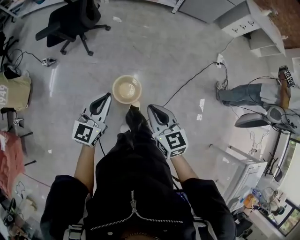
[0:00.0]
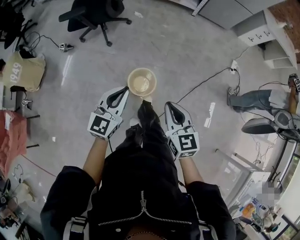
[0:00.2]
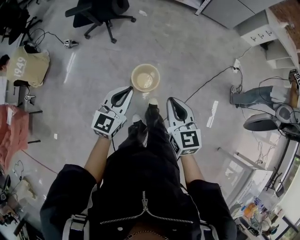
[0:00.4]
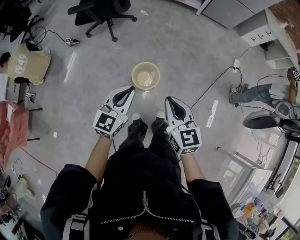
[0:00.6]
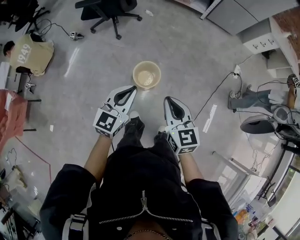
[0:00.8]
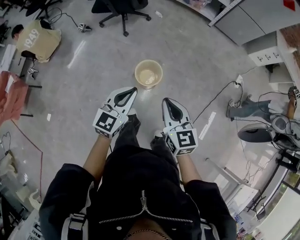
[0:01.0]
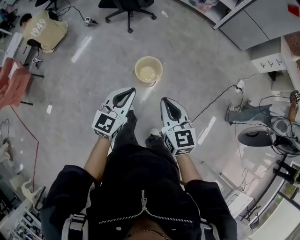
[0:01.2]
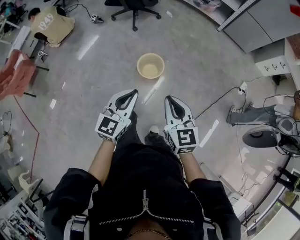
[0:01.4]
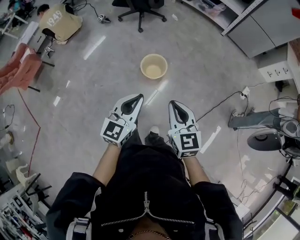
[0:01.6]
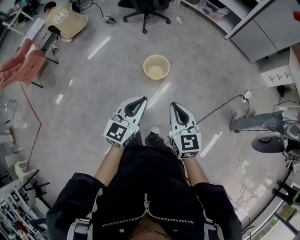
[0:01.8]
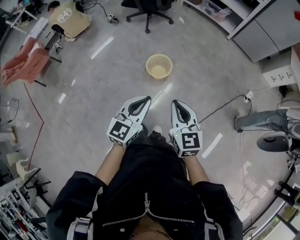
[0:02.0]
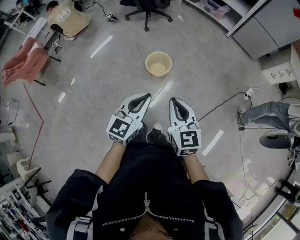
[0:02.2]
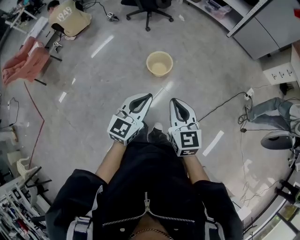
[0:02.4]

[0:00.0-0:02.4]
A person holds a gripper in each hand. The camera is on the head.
0:00.0 to 0:01.2: The two grippers go approximately 20 cm backward.
0:01.2 to 0:02.4: The two grippers go about 15 cm backward and to the right.

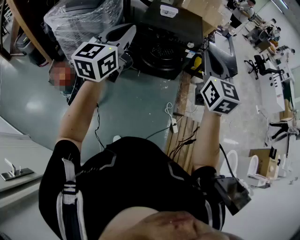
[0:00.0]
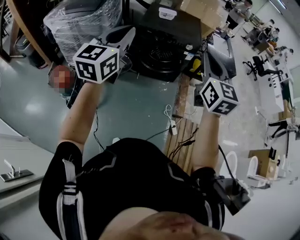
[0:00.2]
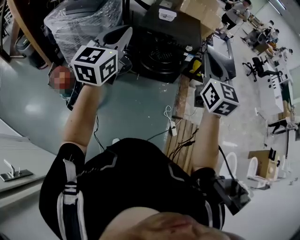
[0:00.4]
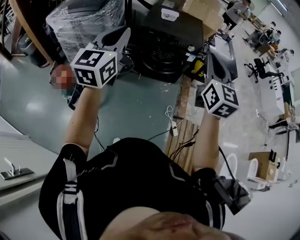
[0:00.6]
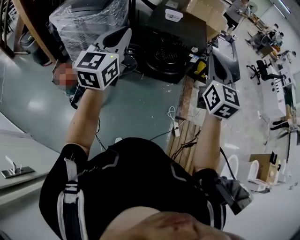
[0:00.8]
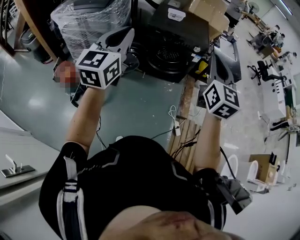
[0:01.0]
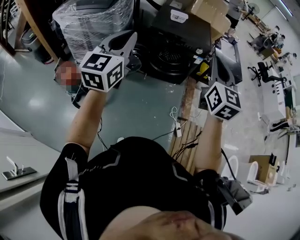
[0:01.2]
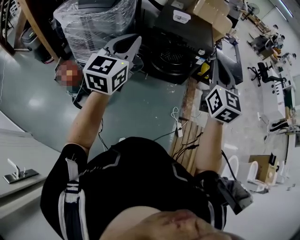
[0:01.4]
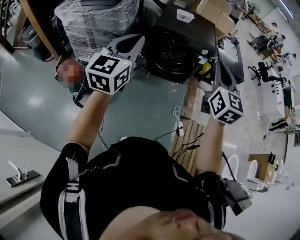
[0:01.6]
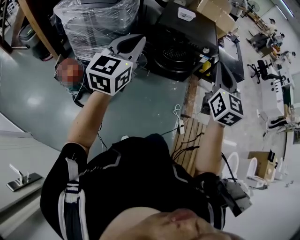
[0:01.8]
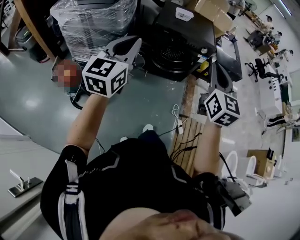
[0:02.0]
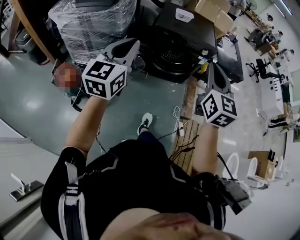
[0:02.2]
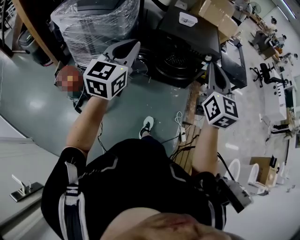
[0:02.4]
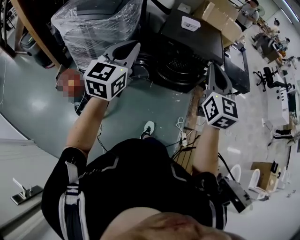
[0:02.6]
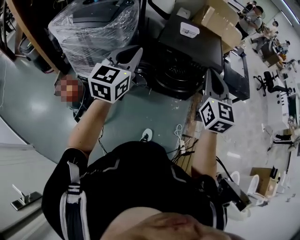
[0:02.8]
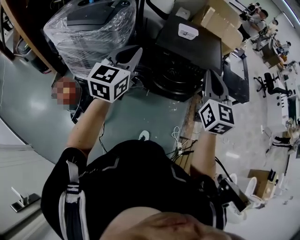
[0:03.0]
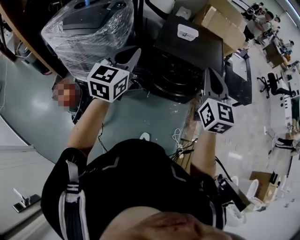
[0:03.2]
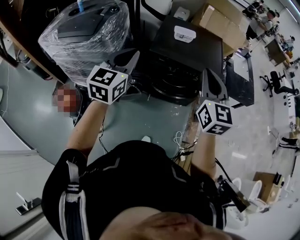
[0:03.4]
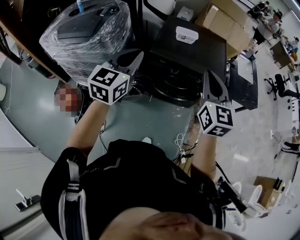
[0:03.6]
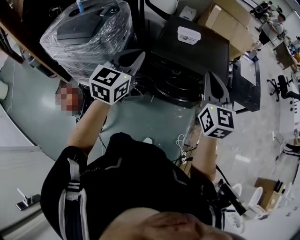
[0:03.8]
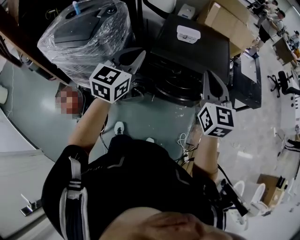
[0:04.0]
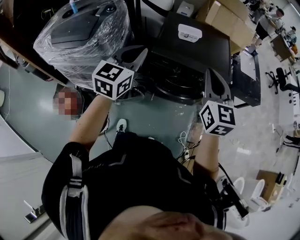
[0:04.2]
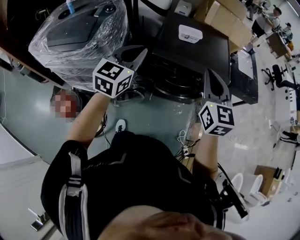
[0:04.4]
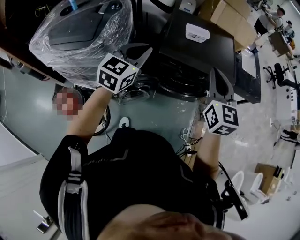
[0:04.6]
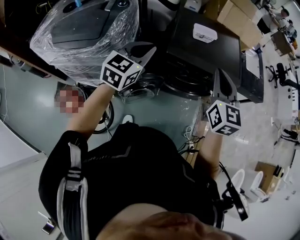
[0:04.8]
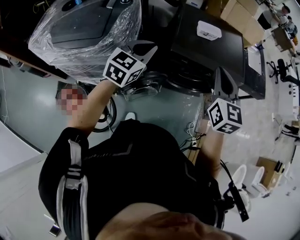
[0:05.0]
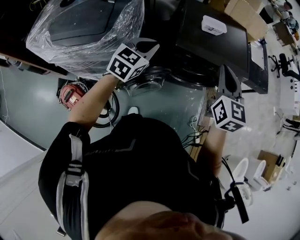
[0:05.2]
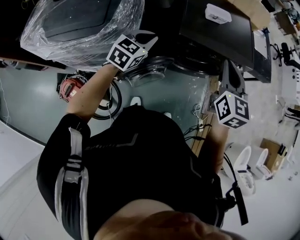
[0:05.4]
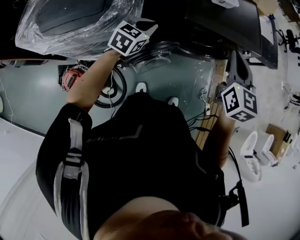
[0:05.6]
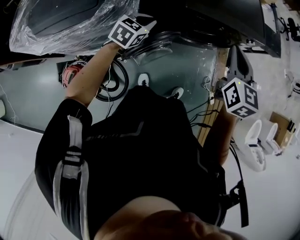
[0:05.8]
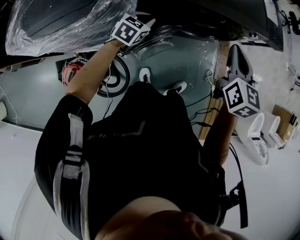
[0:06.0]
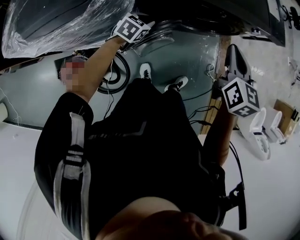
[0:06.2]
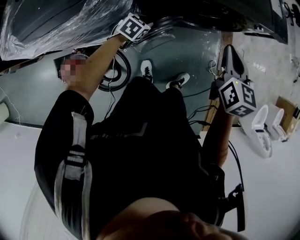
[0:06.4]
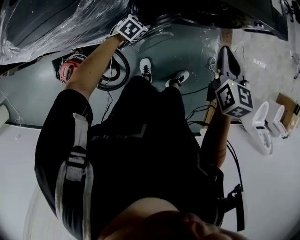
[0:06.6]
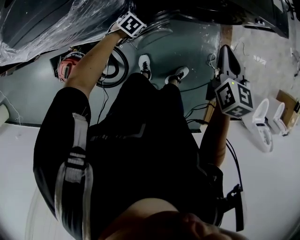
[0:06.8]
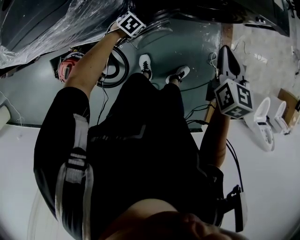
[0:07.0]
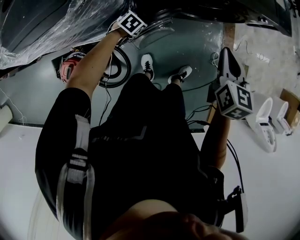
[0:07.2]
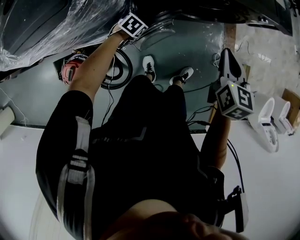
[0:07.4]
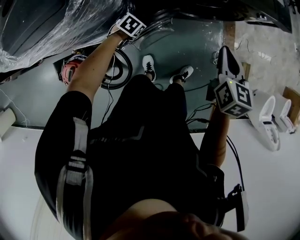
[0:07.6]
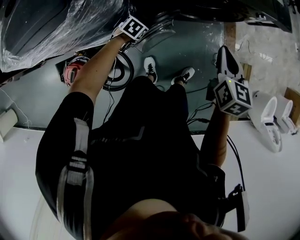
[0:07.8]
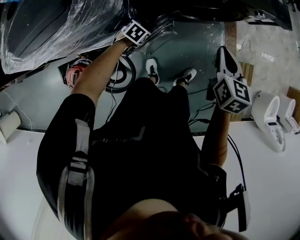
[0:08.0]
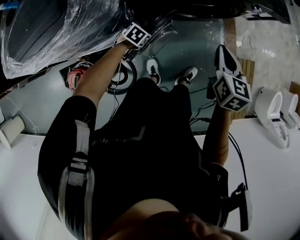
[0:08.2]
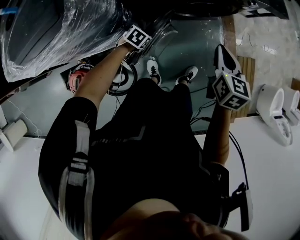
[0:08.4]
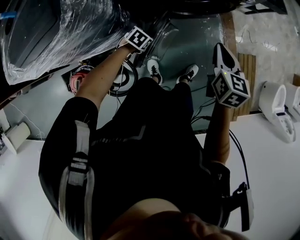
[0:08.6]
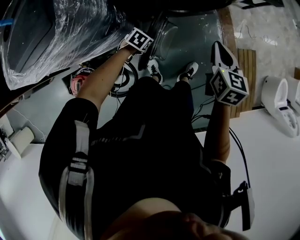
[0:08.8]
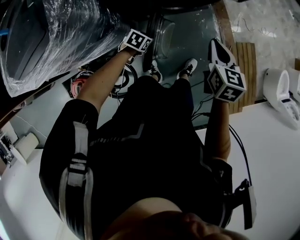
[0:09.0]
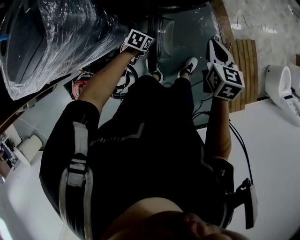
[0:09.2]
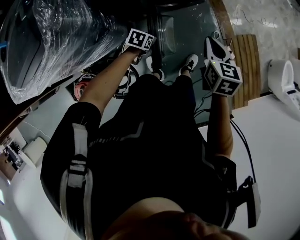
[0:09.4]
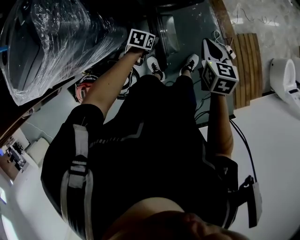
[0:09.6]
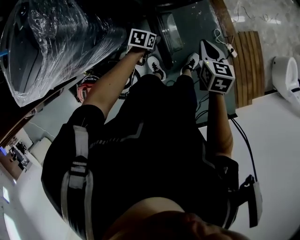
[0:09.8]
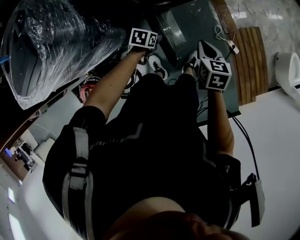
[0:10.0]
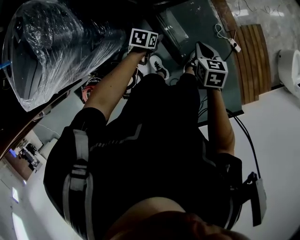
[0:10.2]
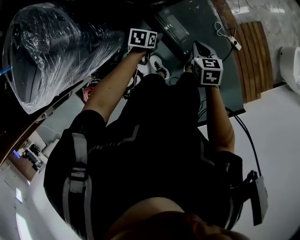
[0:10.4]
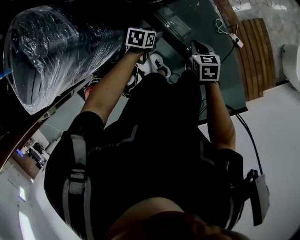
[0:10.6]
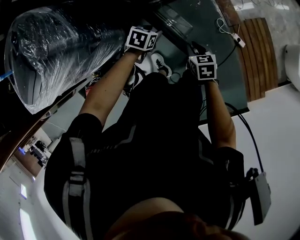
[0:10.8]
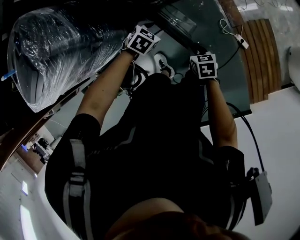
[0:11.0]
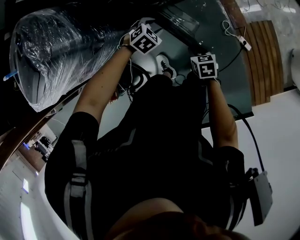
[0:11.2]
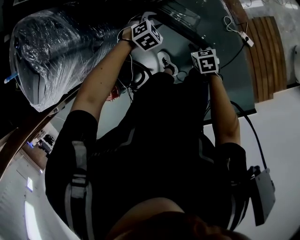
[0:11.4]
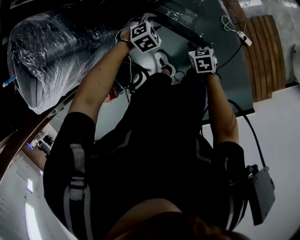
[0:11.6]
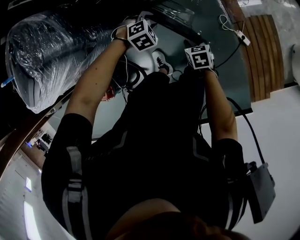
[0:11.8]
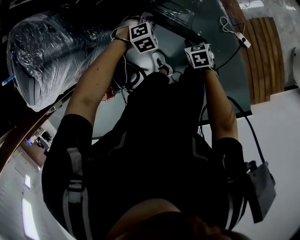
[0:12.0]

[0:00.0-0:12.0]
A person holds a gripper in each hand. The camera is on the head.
0:00.0 to 0:01.6: The two grippers go approximately 10 cm to the left.
0:01.6 to 0:03.0: The two grippers go some 20 cm forward.
0:03.0 to 0:04.4: The grippers both shift forward by about 20 cm.
0:04.4 to 0:06.0: The left gripper travels downward and to the left by approximately 35 cm, and points its fingers some 30 degrees further downward, while the right gripper shifts about 20 cm downward and to the left, and turns by about 30 degrees.
0:06.0 to 0:07.6: The left gripper goes about 20 cm downward, changes its angle by about 30 degrees, and opens; the right gripper moves downward, approximately 10 cm.
0:07.6 to 0:09.0: Both grippers travel together to the right, approximately 10 cm.
0:09.0 to 0:10.4: The right gripper goes approximately 20 cm downward and to the right. Meanwhile the left gripper shifts roughly 15 cm to the right and forward.
0:10.4 to 0:12.0: The right gripper shifts some 15 cm downward, and opens its fingers. The left gripper moves about 10 cm, and rotates around the line of its fingers by some 70 degrees, clockwise from behind.

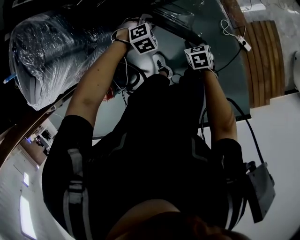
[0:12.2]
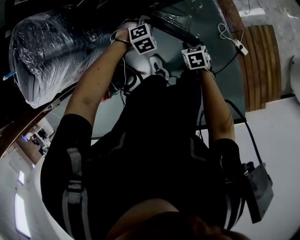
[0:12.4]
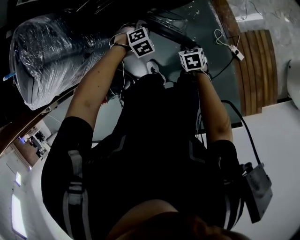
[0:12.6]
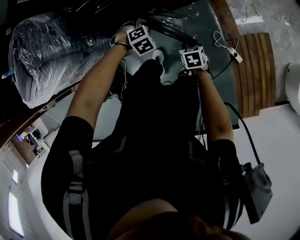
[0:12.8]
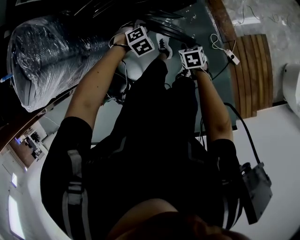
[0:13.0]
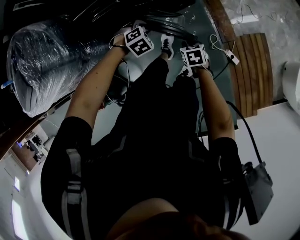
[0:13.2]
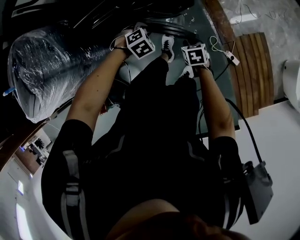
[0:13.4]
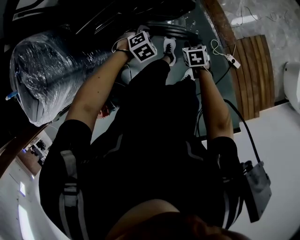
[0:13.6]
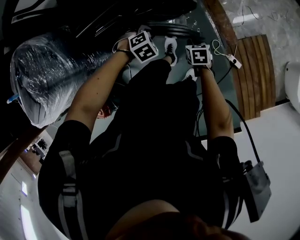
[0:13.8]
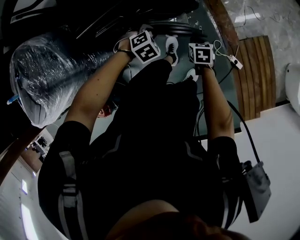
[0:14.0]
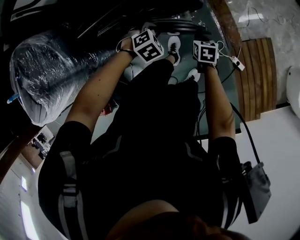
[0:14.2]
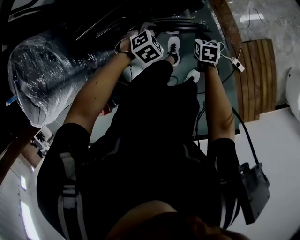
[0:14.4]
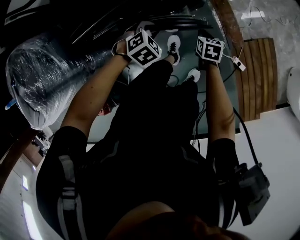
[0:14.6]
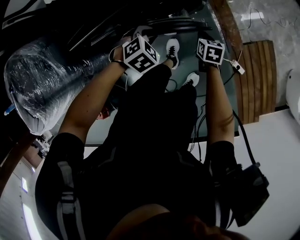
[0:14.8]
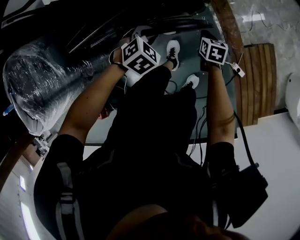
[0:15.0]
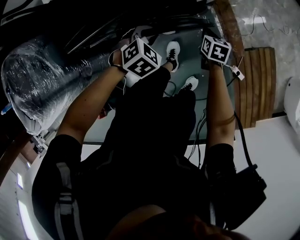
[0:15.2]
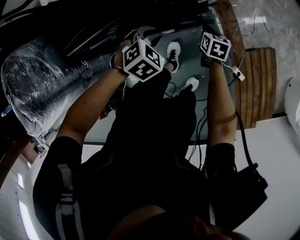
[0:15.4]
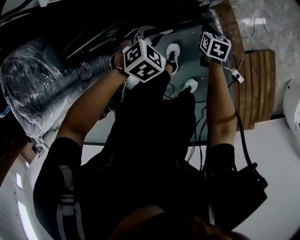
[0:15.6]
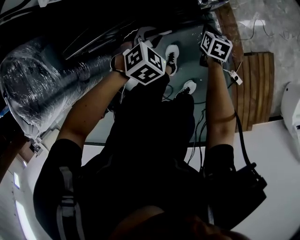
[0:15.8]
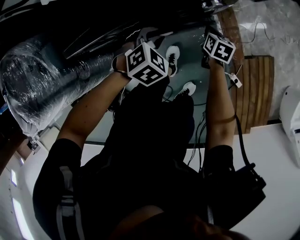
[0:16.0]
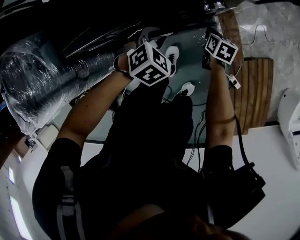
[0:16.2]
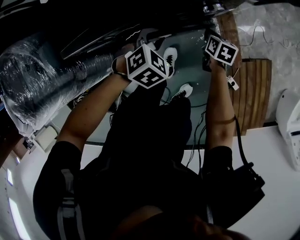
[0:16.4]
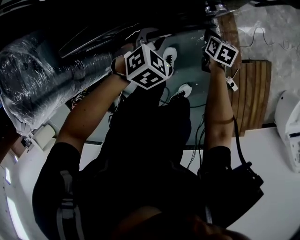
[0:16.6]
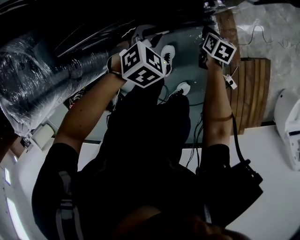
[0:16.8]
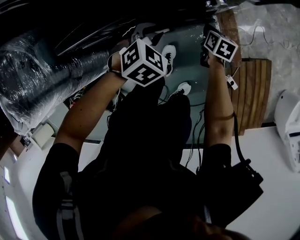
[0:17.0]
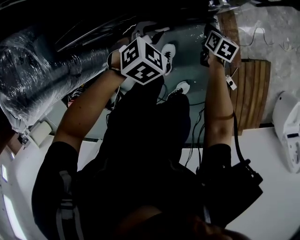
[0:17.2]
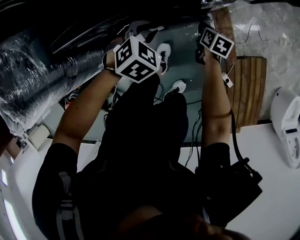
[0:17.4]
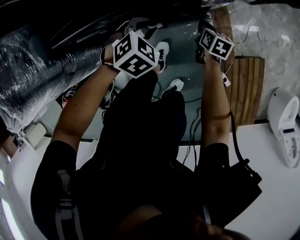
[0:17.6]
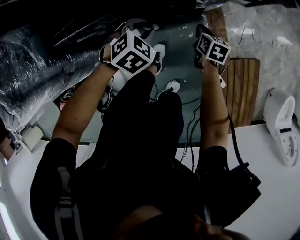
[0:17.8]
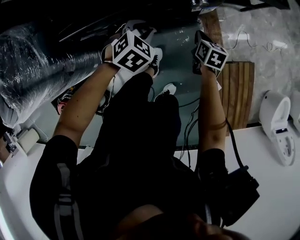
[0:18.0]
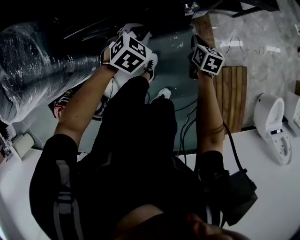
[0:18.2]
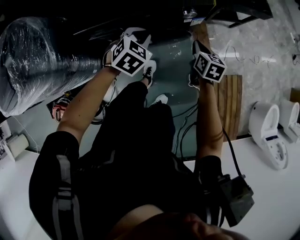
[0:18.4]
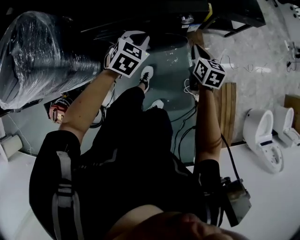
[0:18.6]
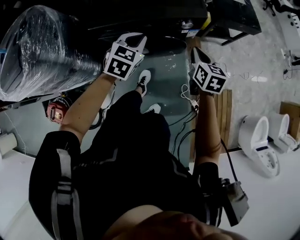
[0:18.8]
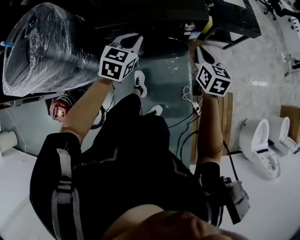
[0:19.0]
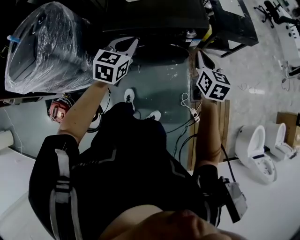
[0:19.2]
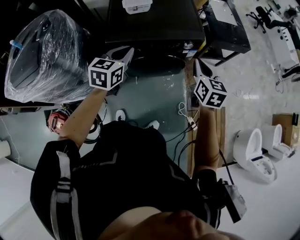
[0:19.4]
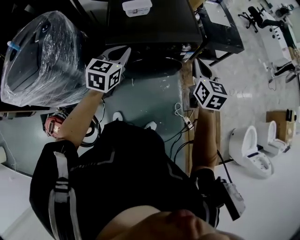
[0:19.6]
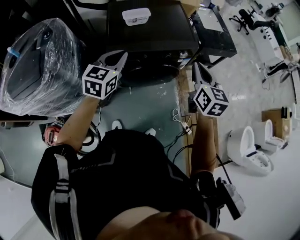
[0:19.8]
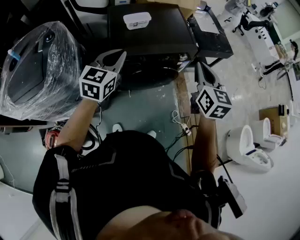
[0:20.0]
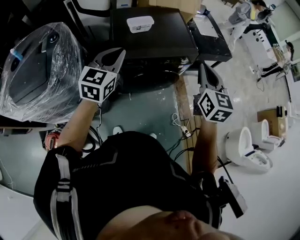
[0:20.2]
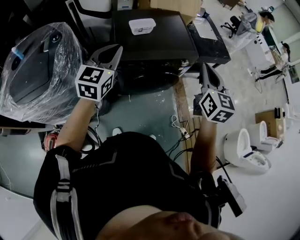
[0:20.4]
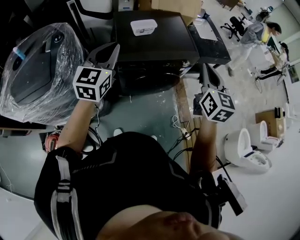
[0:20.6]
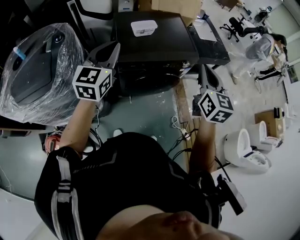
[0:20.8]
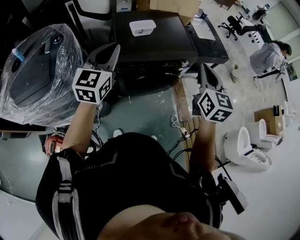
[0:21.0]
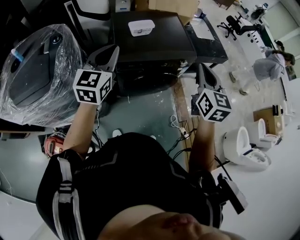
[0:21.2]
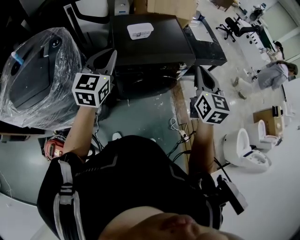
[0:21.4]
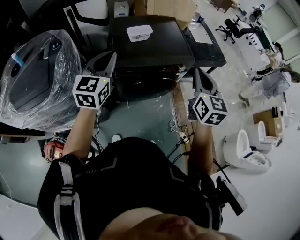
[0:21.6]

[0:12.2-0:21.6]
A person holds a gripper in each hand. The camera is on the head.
0:12.2 to 0:13.8: The left gripper shifts by approximately 10 cm. The right gripper ends up approximately 20 cm from where it was.
0:13.8 to 0:15.4: The right gripper changes place by about 20 cm. The left gripper shifts by about 10 cm.
0:15.4 to 0:17.0: The grippers move only a little.
0:17.0 to 0:18.4: The left gripper heads upward, covering some 10 cm, while the right gripper shifts some 20 cm upward.
0:18.4 to 0:20.0: The left gripper travels upward and to the left by approximately 35 cm, and points its fingers approximately 40 degrees further upward. Meanwhile the right gripper moves upward, approximately 40 cm, and rotates about 30 degrees.
0:20.0 to 0:21.6: The left gripper moves to the left and upward, about 10 cm; the right gripper changes place by approximately 5 cm.
